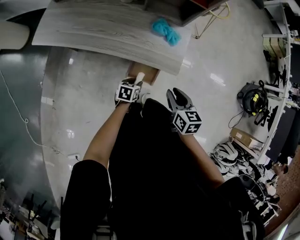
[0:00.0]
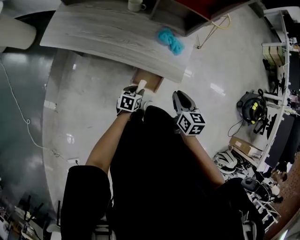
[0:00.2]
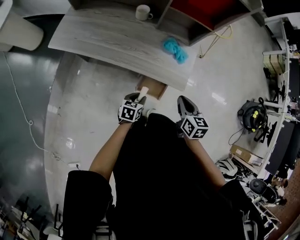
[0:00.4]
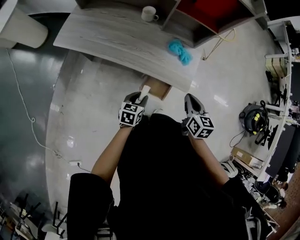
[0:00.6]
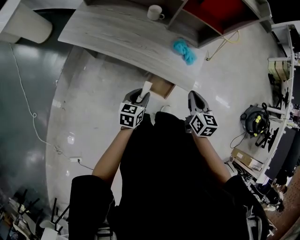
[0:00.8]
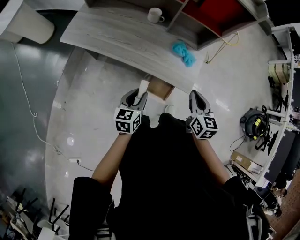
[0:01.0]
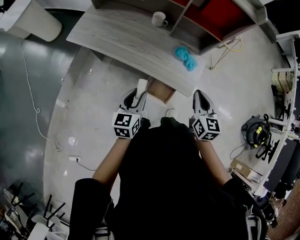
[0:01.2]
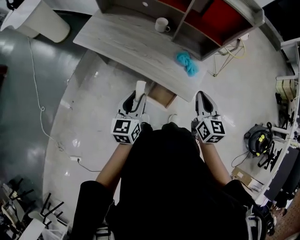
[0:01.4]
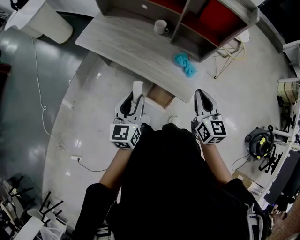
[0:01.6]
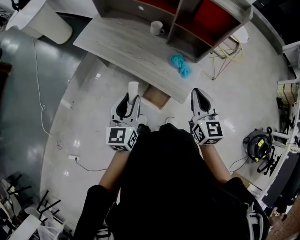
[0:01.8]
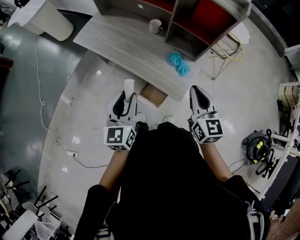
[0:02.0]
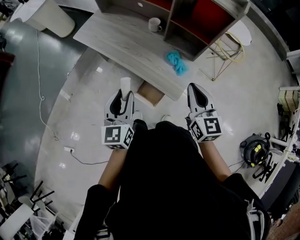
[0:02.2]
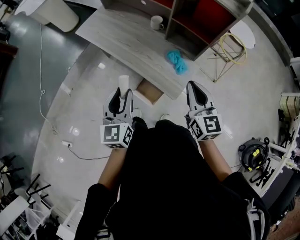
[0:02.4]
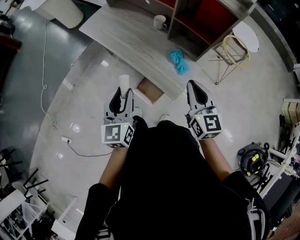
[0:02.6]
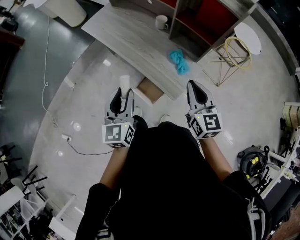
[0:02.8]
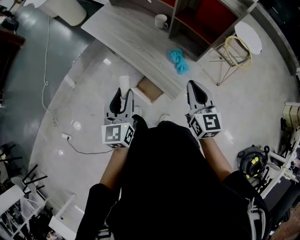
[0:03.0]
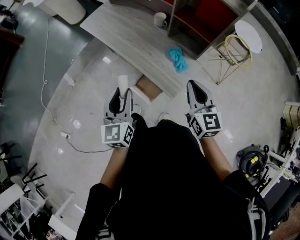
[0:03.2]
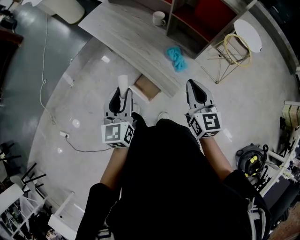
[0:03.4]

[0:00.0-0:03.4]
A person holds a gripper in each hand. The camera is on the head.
0:00.0 to 0:01.6: The right gripper moves upward, approximately 20 cm, swivels approximately 30 degrees, and closes its fingers. Meanwhile the left gripper goes some 35 cm upward, and tilts its fingers roughly 40 degrees upward.
0:01.6 to 0:03.4: The left gripper is displaced to the right and backward by roughly 10 cm, and turns by approximately 20 degrees. Meanwhile the right gripper shifts approximately 10 cm to the right.

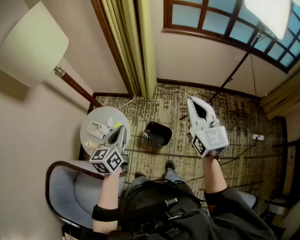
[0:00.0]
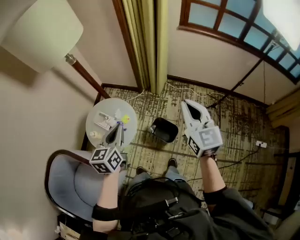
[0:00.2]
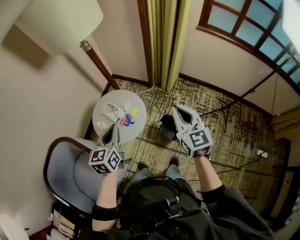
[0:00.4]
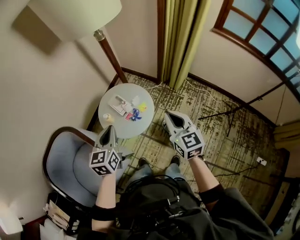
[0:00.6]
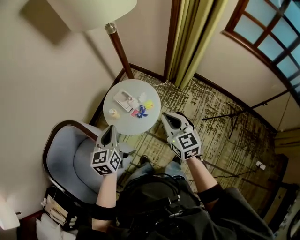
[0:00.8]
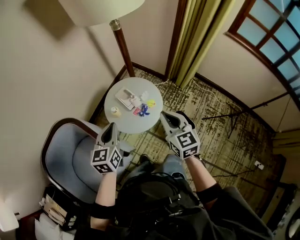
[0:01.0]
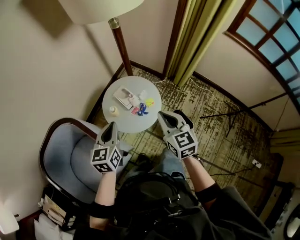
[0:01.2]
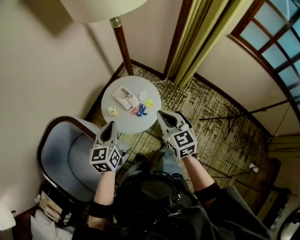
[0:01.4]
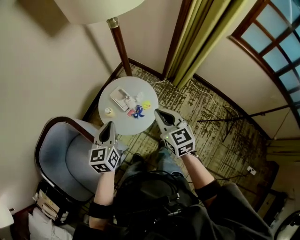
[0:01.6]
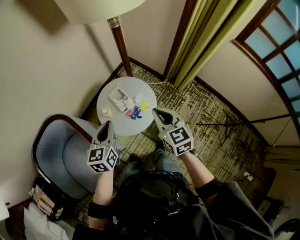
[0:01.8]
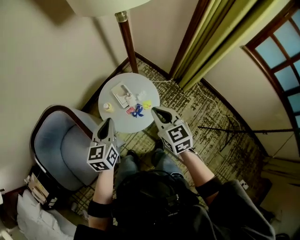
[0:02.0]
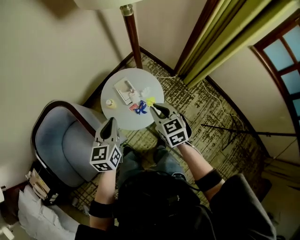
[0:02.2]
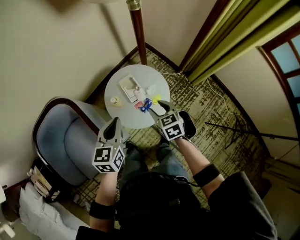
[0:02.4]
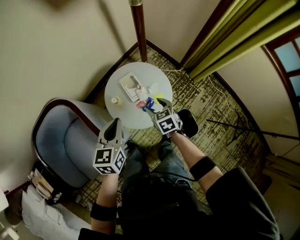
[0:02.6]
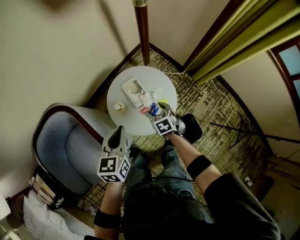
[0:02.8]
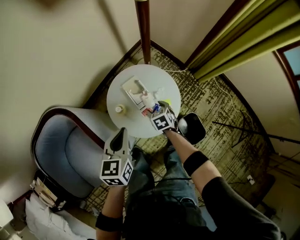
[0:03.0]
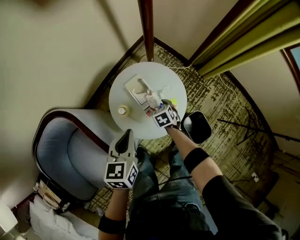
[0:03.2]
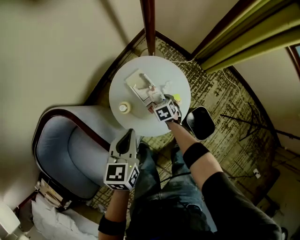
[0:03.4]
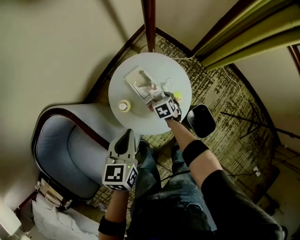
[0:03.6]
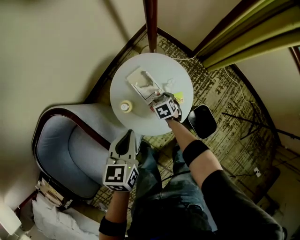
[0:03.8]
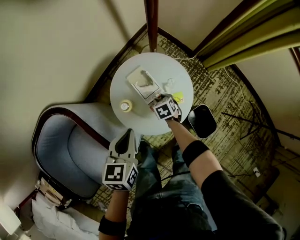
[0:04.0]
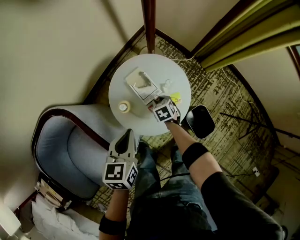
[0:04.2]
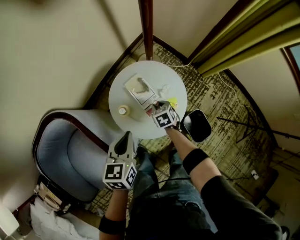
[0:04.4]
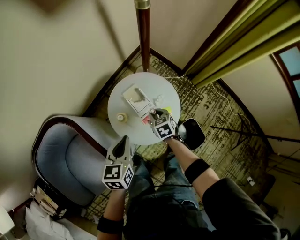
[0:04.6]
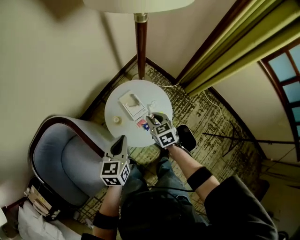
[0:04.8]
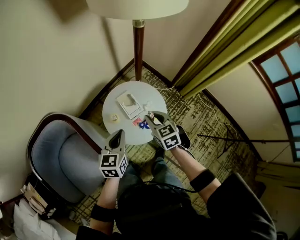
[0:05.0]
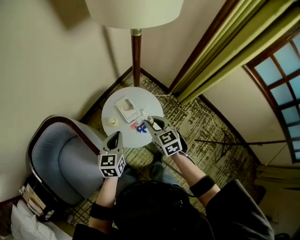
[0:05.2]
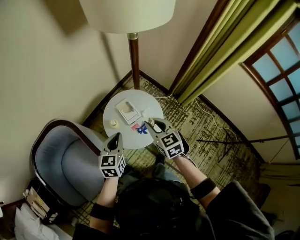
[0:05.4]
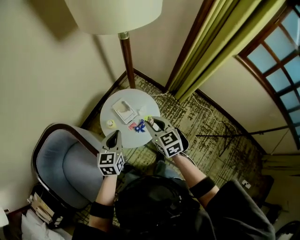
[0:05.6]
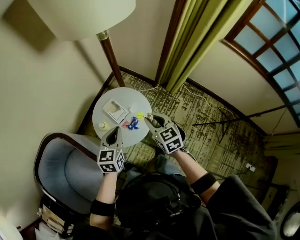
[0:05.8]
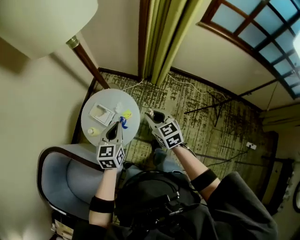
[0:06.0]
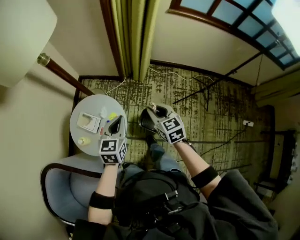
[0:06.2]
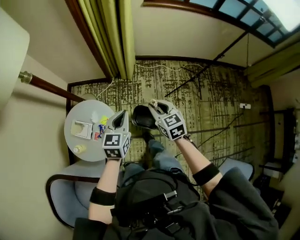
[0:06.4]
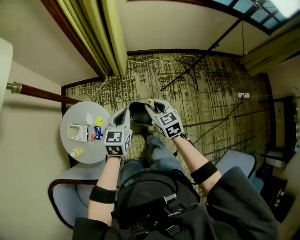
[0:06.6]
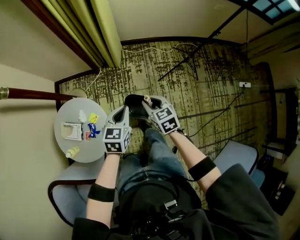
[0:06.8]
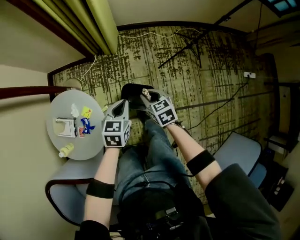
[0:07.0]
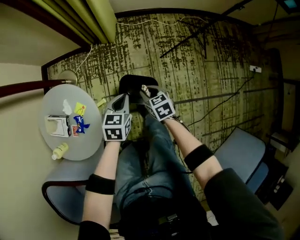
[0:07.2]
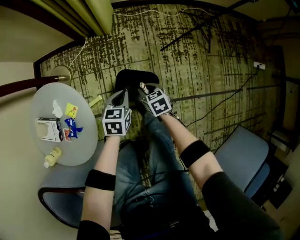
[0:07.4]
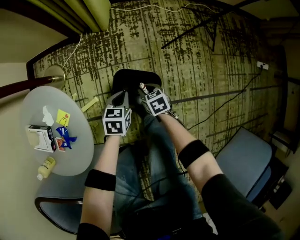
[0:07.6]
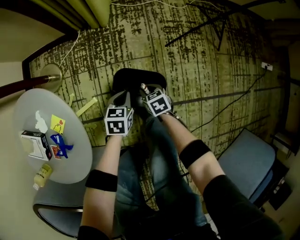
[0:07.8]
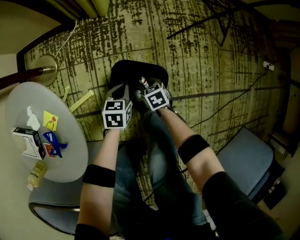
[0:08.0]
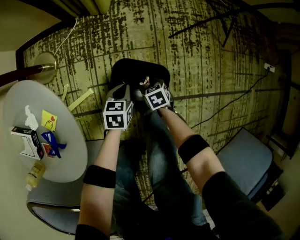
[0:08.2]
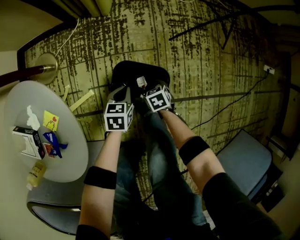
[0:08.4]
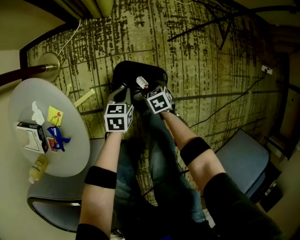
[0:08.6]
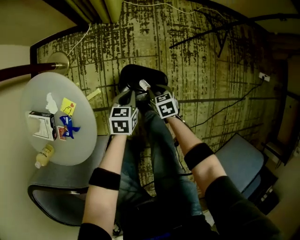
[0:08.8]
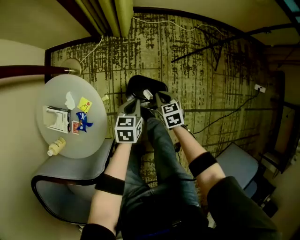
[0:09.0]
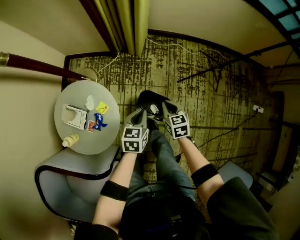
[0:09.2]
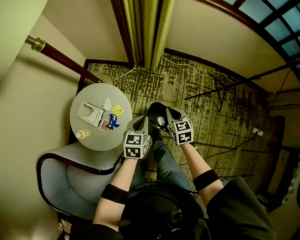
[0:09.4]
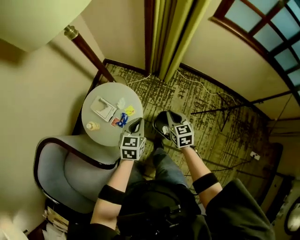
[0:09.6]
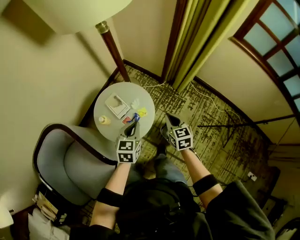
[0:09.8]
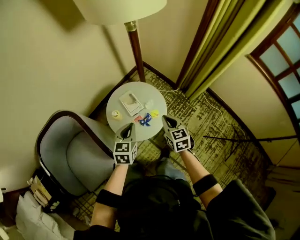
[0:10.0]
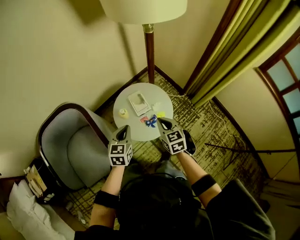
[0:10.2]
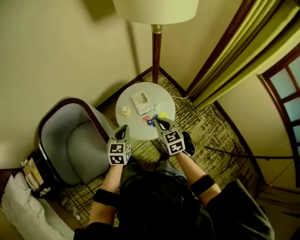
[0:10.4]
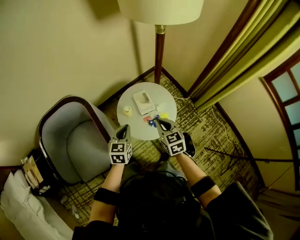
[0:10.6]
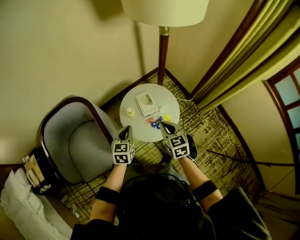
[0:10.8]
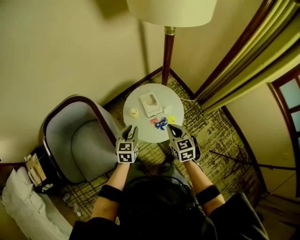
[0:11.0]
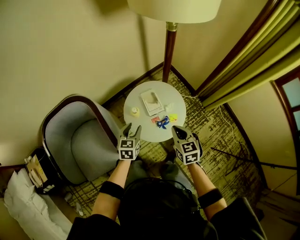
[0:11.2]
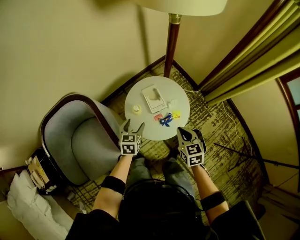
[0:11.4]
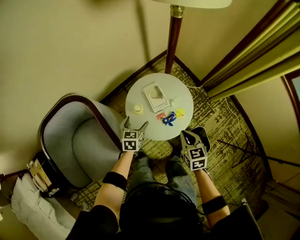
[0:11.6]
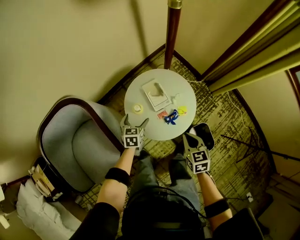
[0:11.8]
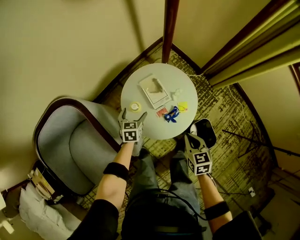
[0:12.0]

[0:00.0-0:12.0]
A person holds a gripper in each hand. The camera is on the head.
0:00.0 to 0:01.6: The left gripper moves some 30 cm, and swivels roughly 30 degrees. Meanwhile the right gripper moves approximately 40 cm, and turns by some 40 degrees.
0:01.6 to 0:03.0: The left gripper travels downward and forward by some 15 cm. Meanwhile the right gripper heads downward and forward, covering about 40 cm, angles its fingers downward, by approximately 40 degrees, and opens its fingers.
0:03.0 to 0:04.4: Both grippers move downward, roughly 5 cm. The right gripper closes its fingers.
0:04.4 to 0:06.0: The right gripper travels upward, to the right and backward by some 40 cm, and swivels roughly 30 degrees; the left gripper is displaced to the right and upward by roughly 20 cm, and turns by some 30 degrees.
0:06.0 to 0:07.6: Both grippers travel together downward, roughly 50 cm. The right gripper turns by approximately 40 degrees; the left gripper changes its angle by about 40 degrees.
0:07.6 to 0:09.0: The grippers both shift upward by about 15 cm. The right gripper opens, then closes once more.
0:09.0 to 0:10.4: The right gripper travels upward by roughly 40 cm, and turns by approximately 60 degrees, while the left gripper ends up roughly 60 cm from where it was, and changes its angle by approximately 60 degrees.
0:10.4 to 0:12.0: The left gripper is displaced downward and forward by roughly 30 cm, and opens; the right gripper goes roughly 20 cm downward, and rotates approximately 20 degrees.

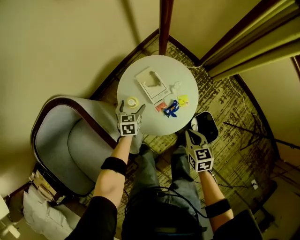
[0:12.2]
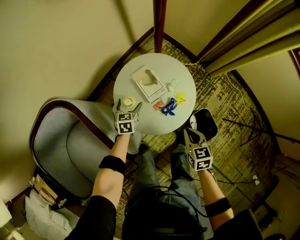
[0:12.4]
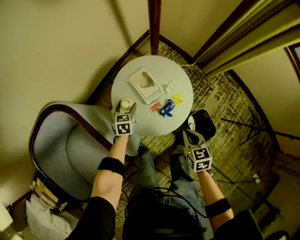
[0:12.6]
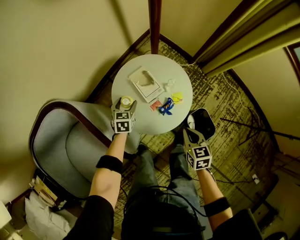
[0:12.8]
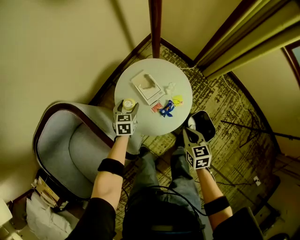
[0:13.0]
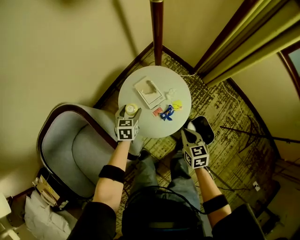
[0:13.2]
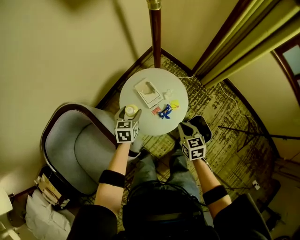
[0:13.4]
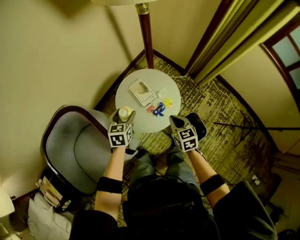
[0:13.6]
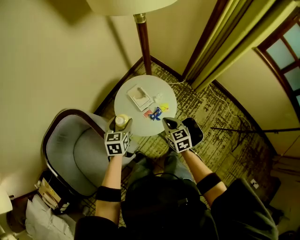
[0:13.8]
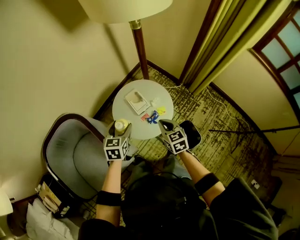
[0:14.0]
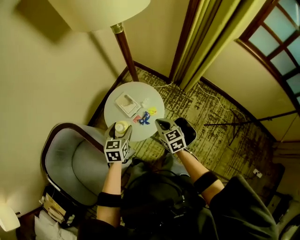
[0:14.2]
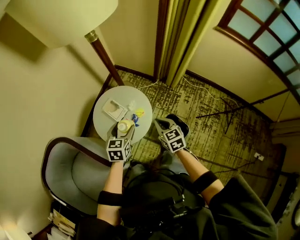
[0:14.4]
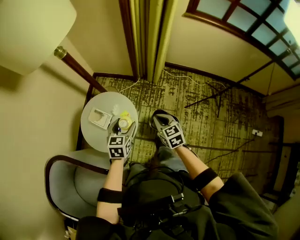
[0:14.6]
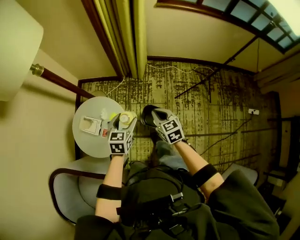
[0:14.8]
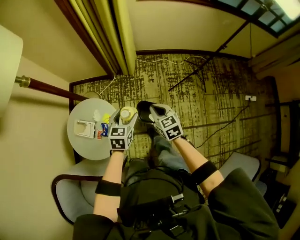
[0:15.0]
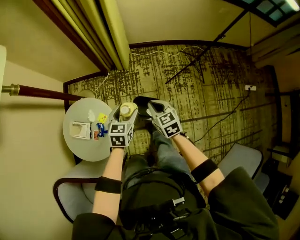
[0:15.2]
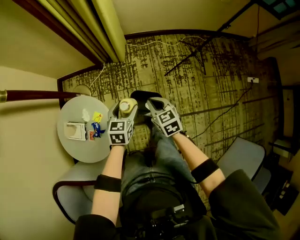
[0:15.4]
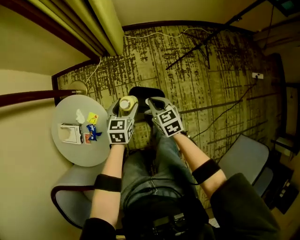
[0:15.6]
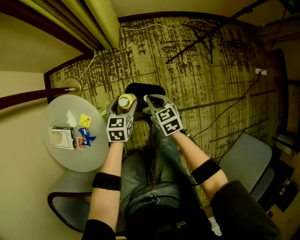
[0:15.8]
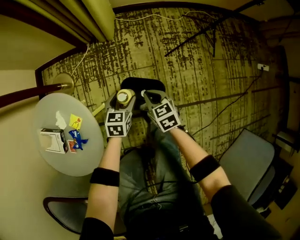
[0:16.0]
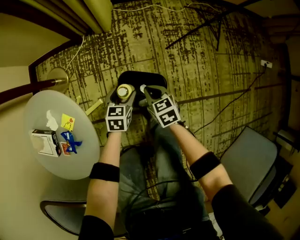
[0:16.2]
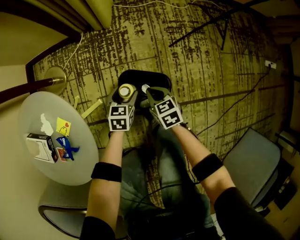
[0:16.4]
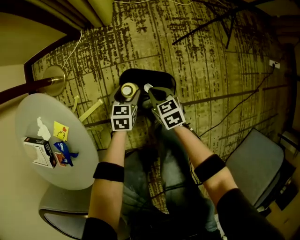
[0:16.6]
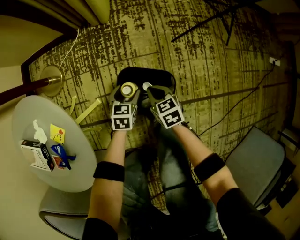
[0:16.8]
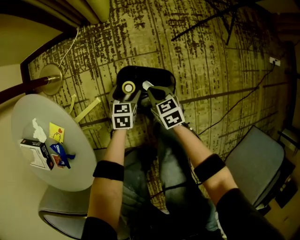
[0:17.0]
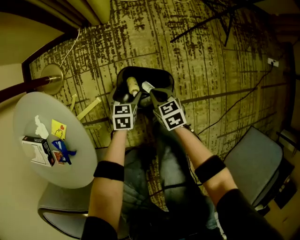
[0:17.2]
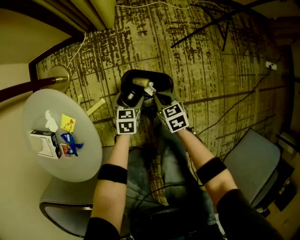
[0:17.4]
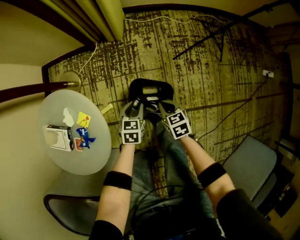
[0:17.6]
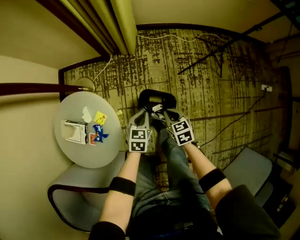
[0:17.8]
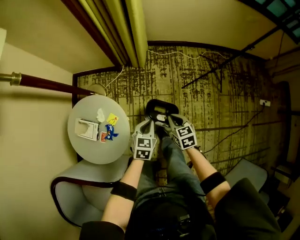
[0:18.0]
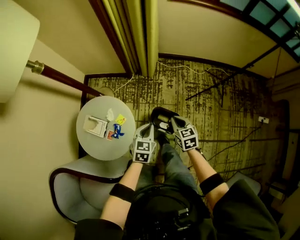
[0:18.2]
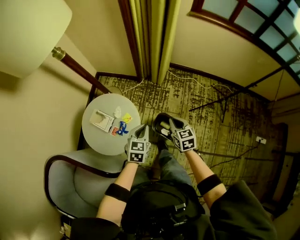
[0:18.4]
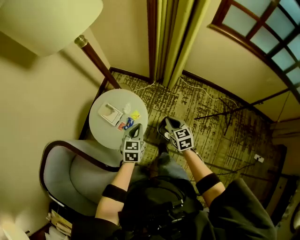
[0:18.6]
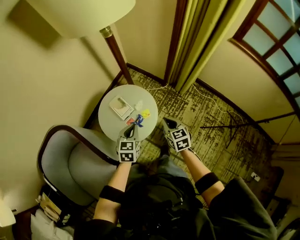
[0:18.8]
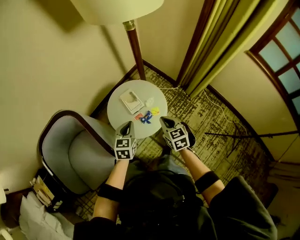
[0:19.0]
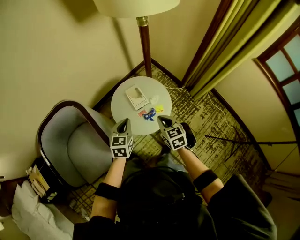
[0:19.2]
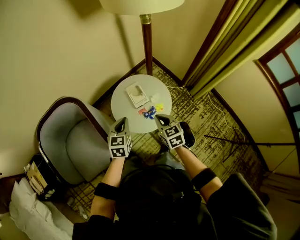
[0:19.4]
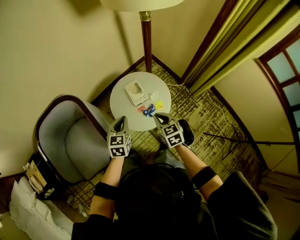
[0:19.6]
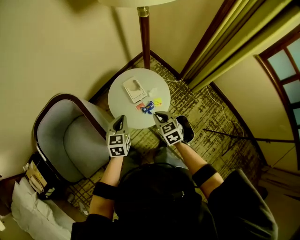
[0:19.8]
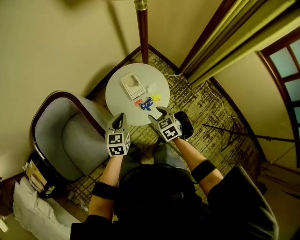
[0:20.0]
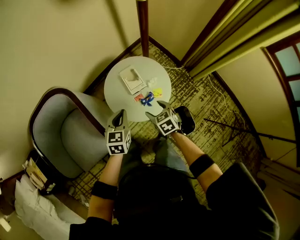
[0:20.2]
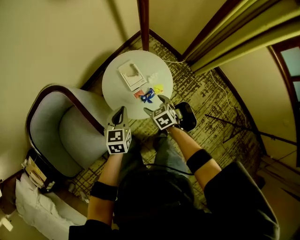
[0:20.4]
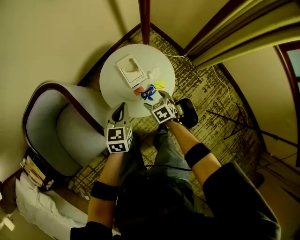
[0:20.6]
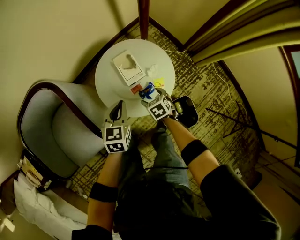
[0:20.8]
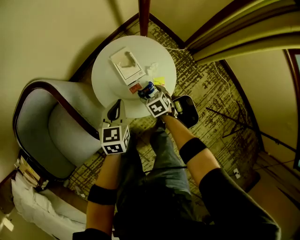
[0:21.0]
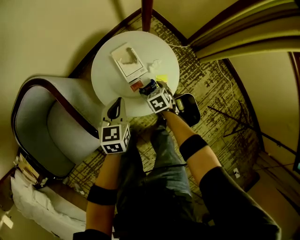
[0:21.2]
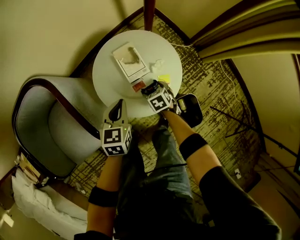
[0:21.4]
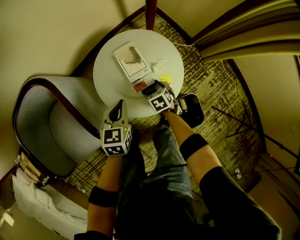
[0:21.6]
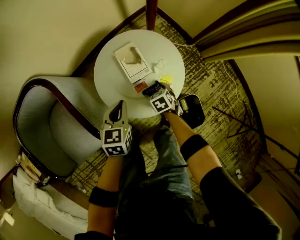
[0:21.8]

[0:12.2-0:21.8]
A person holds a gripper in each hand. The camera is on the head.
0:12.2 to 0:13.8: The left gripper goes roughly 30 cm upward; the right gripper travels upward by some 15 cm.
0:13.8 to 0:15.4: The right gripper ends up about 35 cm from where it was, and changes its angle by roughly 40 degrees, while the left gripper shifts by some 50 cm, and turns by approximately 50 degrees.
0:15.4 to 0:17.0: Both grippers travel together downward, approximately 50 cm.
0:17.0 to 0:18.6: Both grippers move upward, roughly 50 cm. The right gripper rotates about 30 degrees. The left gripper swivels some 40 degrees, and closes.
0:18.6 to 0:20.2: The left gripper ends up some 20 cm from where it was, and changes its angle by approximately 30 degrees. The right gripper ends up some 25 cm from where it was, turns by some 40 degrees, and opens.
0:20.2 to 0:21.8: The right gripper goes some 25 cm downward, while the left gripper moves downward, roughly 15 cm.
